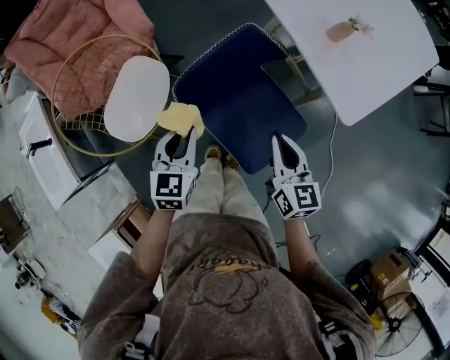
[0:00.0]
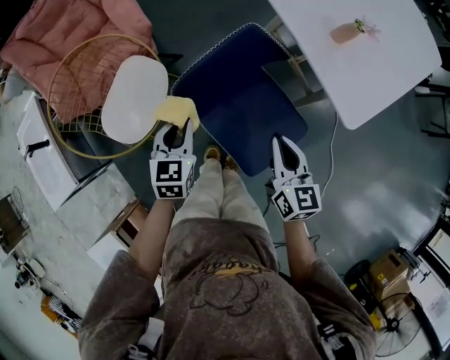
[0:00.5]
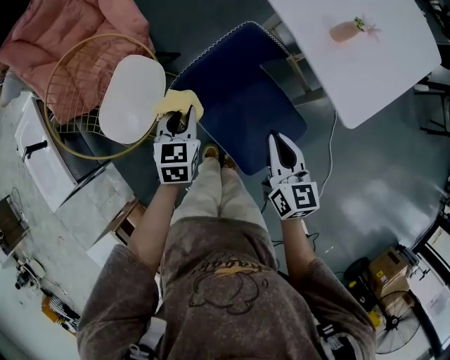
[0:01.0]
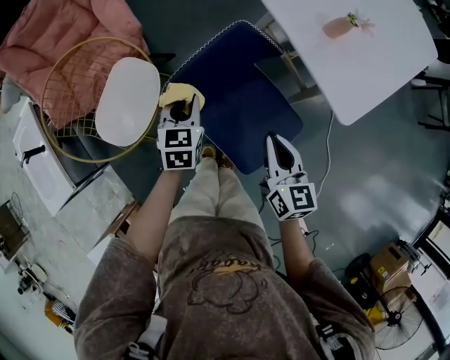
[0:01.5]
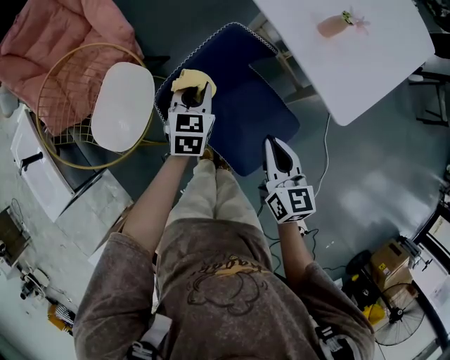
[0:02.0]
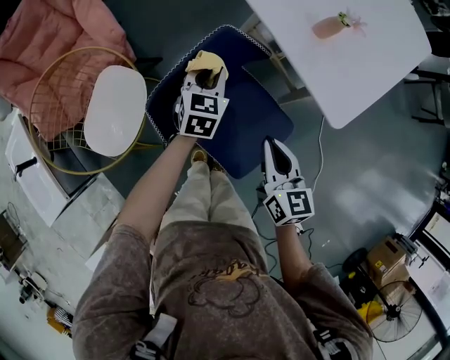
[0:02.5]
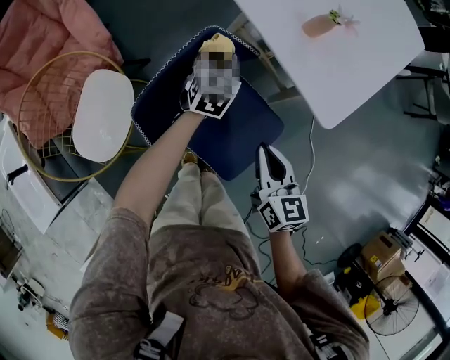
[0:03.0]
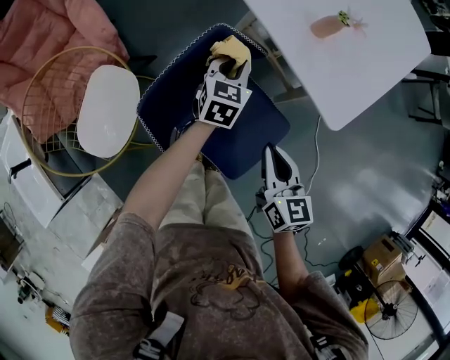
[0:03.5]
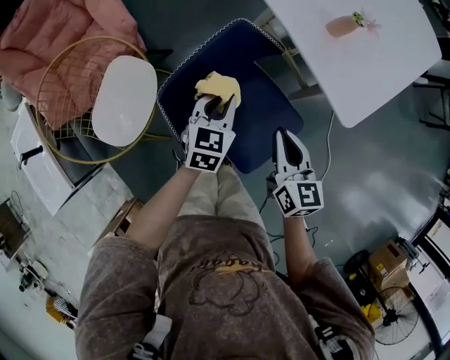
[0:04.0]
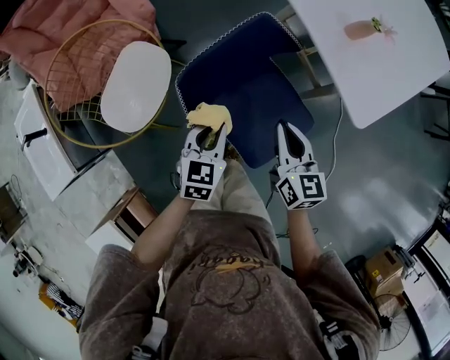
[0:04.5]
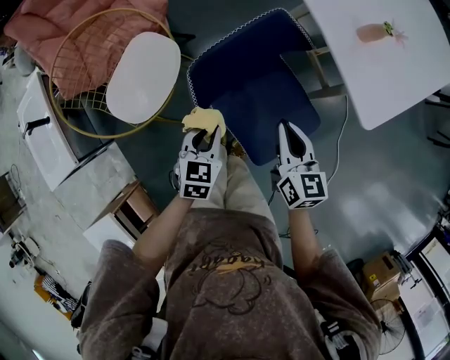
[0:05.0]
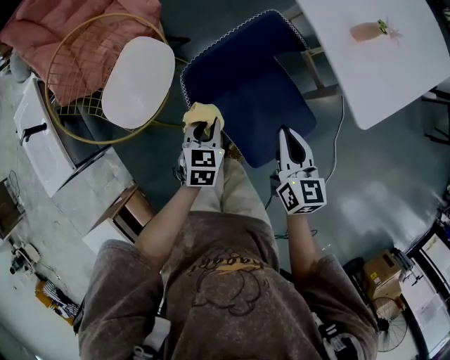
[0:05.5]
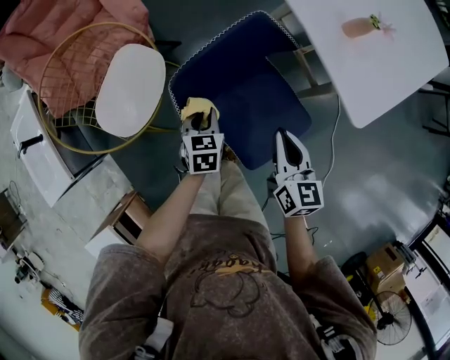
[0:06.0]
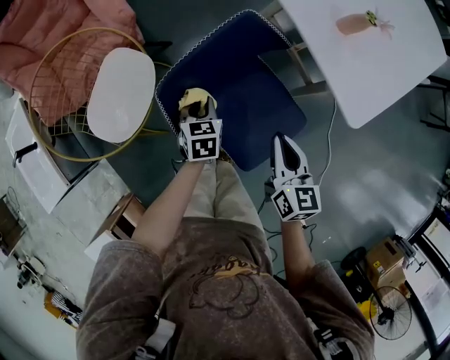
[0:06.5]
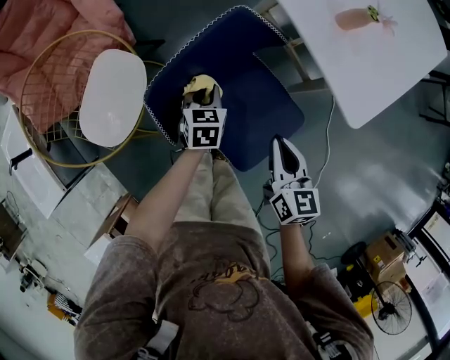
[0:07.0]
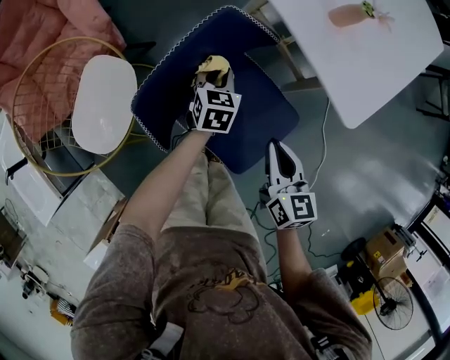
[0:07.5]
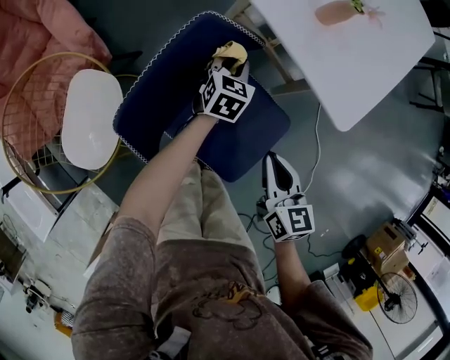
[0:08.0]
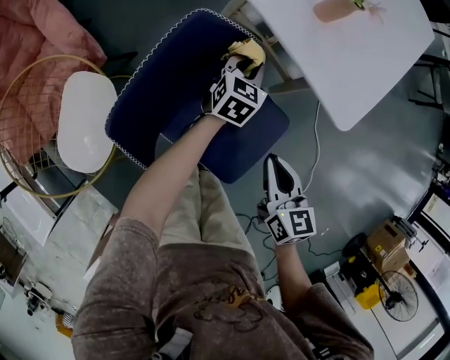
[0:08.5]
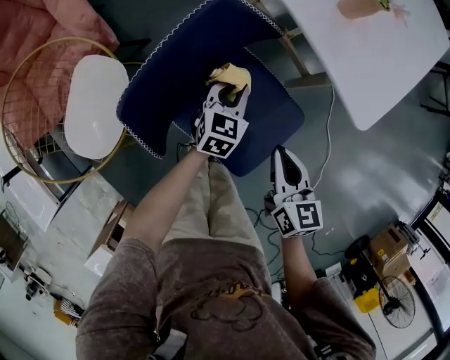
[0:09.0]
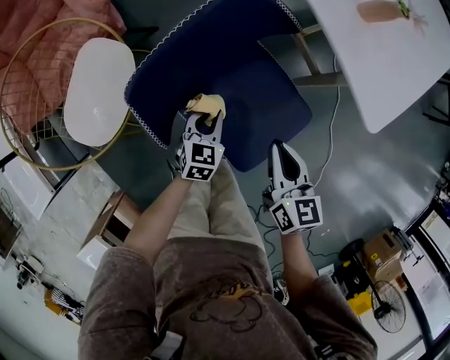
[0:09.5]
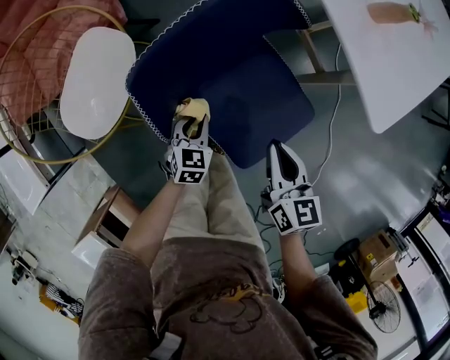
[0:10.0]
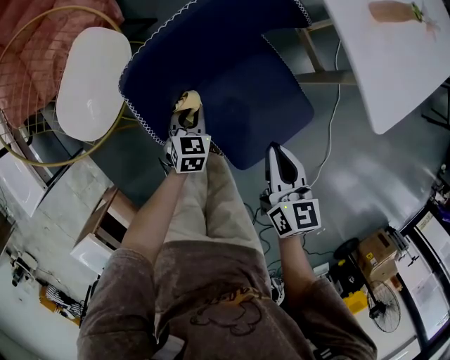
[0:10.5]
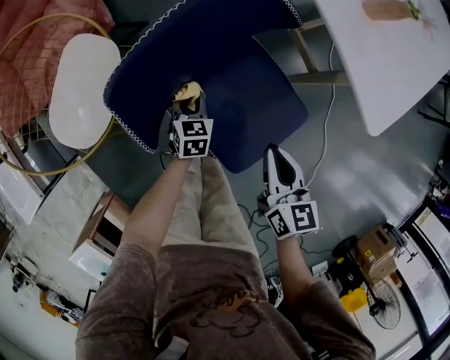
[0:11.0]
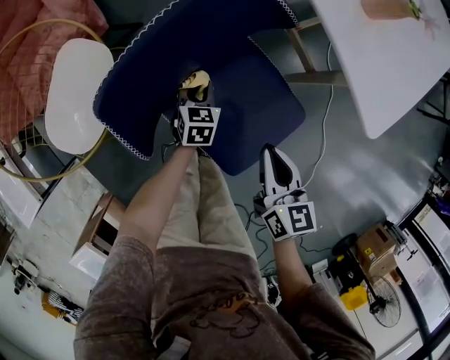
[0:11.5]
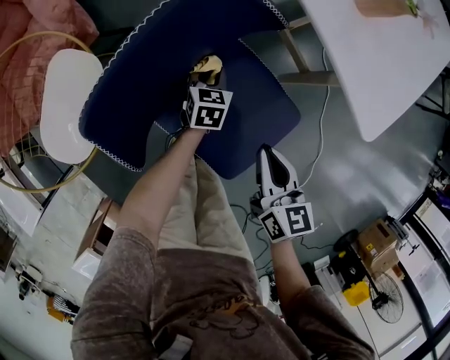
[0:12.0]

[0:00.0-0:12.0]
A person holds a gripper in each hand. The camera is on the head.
0:00.0 to 0:02.0: The left gripper travels forward, to the right and downward by roughly 15 cm.
0:02.0 to 0:04.0: The left gripper moves to the right, roughly 5 cm, and reaches about 10 cm forward, then returns.
0:04.0 to 0:06.0: The left gripper is displaced to the left, downward and backward by roughly 15 cm, and turns by approximately 30 degrees.
0:06.0 to 0:08.0: The left gripper goes about 30 cm to the right and forward, and changes its angle by approximately 30 degrees; the right gripper goes roughly 5 cm to the right.
0:08.0 to 0:10.0: The right gripper heads to the left, covering approximately 5 cm, while the left gripper goes about 30 cm backward, to the left and downward.
0:10.0 to 0:12.0: The left gripper heads forward and to the right, covering roughly 20 cm. Meanwhile the right gripper ends up roughly 5 cm from where it was.

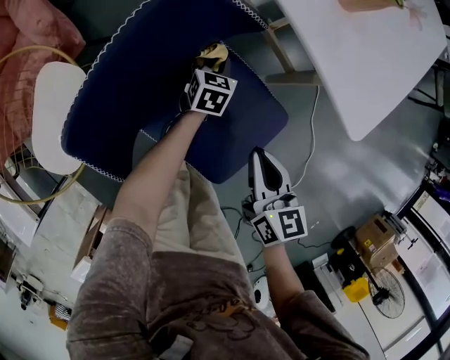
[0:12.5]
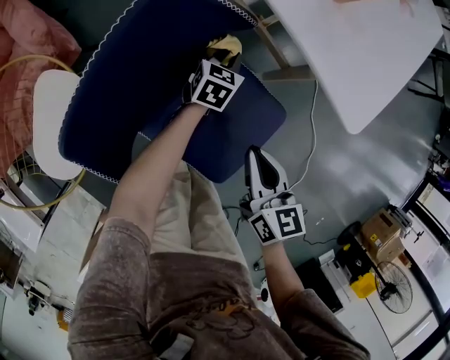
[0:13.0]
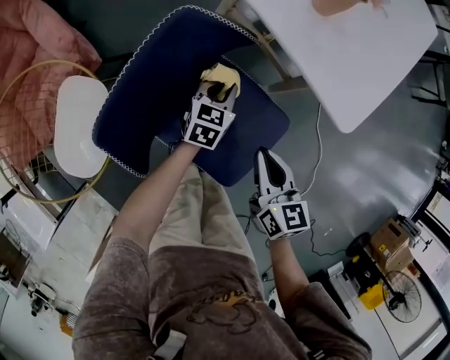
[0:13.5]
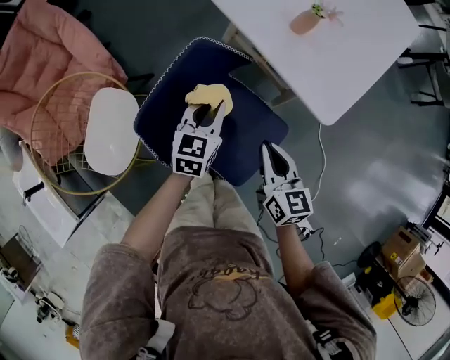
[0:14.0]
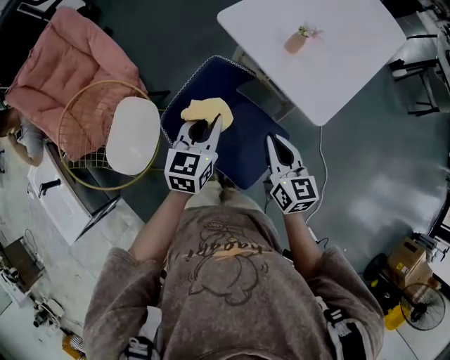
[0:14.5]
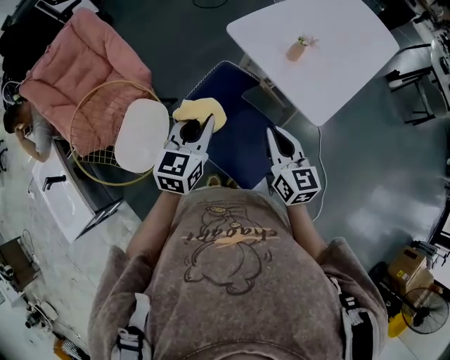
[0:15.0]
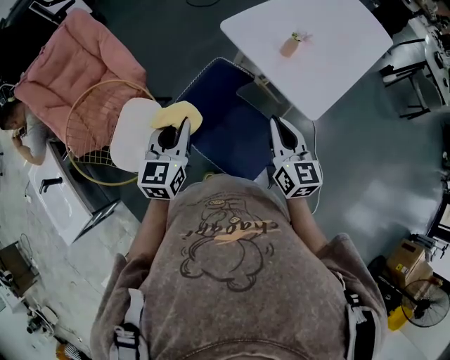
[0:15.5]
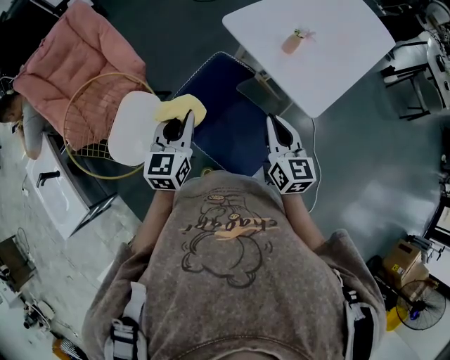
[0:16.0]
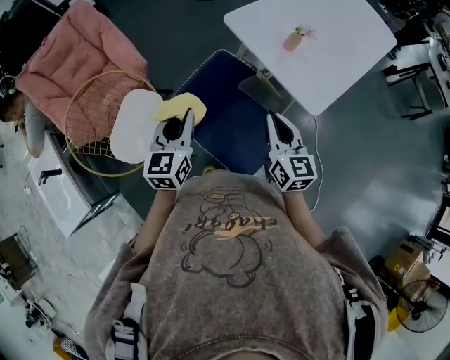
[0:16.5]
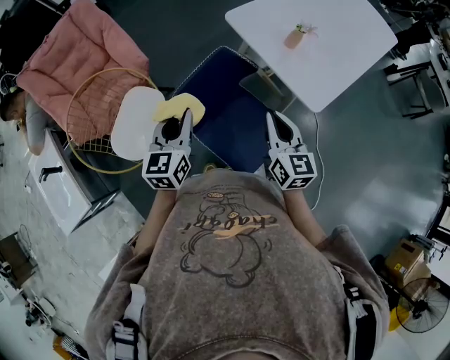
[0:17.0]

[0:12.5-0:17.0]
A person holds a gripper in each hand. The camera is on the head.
0:12.5 to 0:14.5: The right gripper goes roughly 20 cm upward; the left gripper travels upward by about 40 cm, and rotates approximately 20 degrees.
0:14.5 to 0:17.0: The left gripper shifts some 15 cm to the left and backward; the right gripper travels upward by about 5 cm.

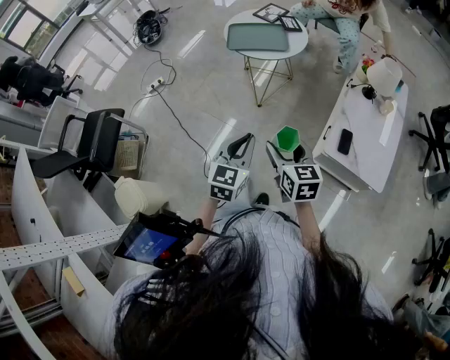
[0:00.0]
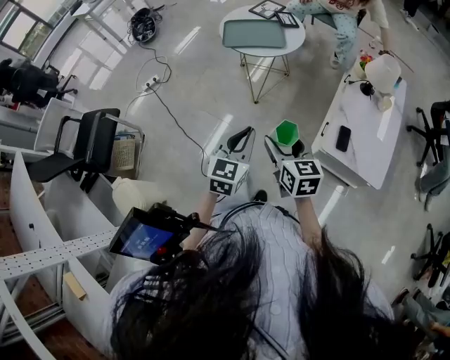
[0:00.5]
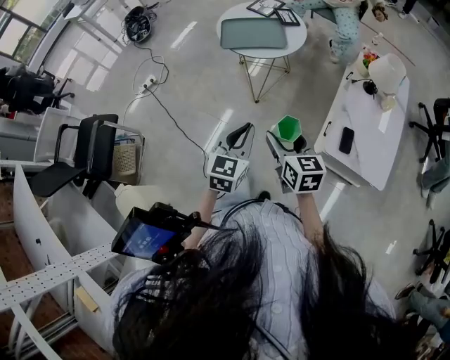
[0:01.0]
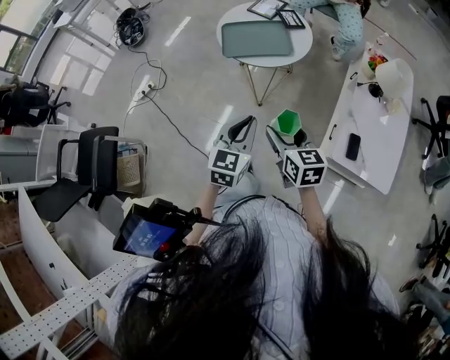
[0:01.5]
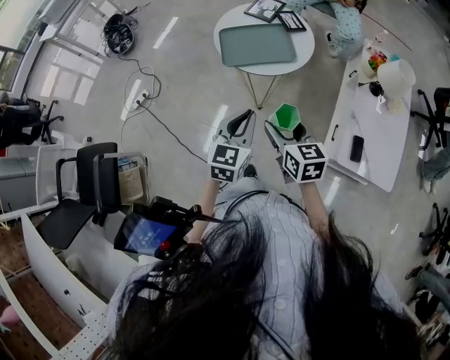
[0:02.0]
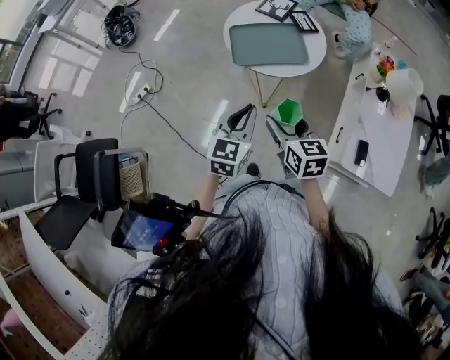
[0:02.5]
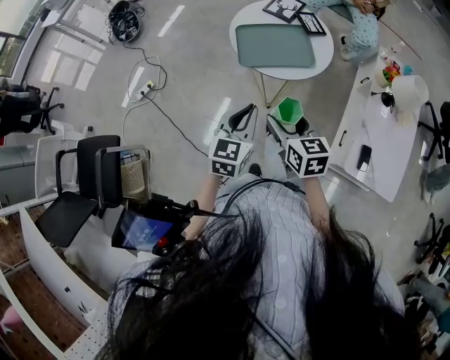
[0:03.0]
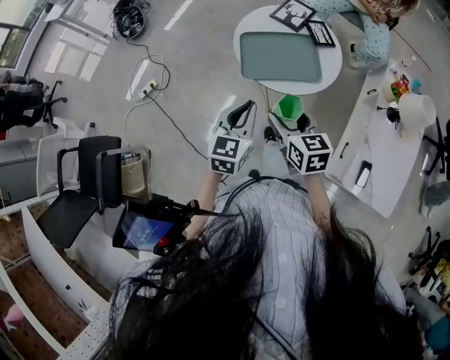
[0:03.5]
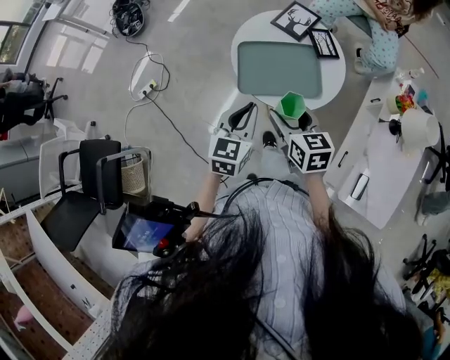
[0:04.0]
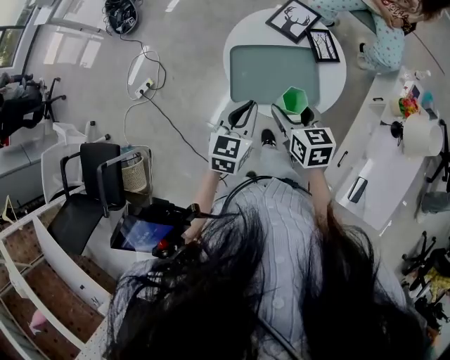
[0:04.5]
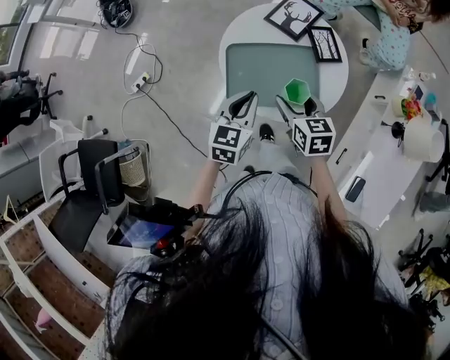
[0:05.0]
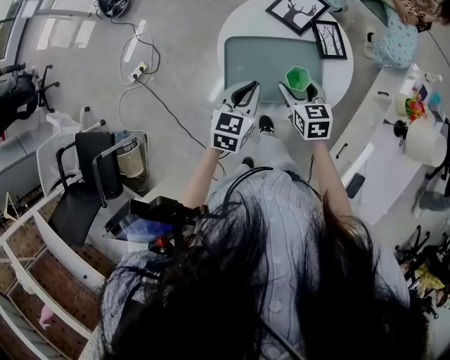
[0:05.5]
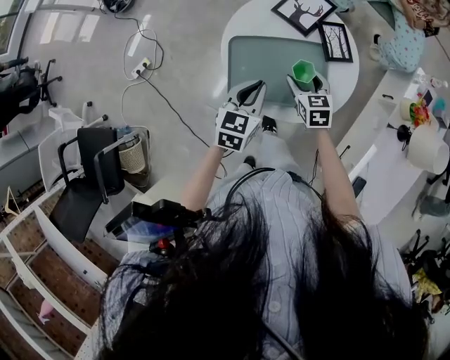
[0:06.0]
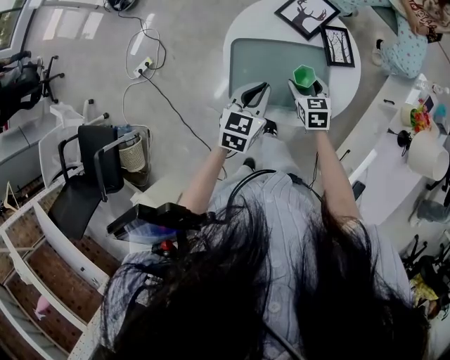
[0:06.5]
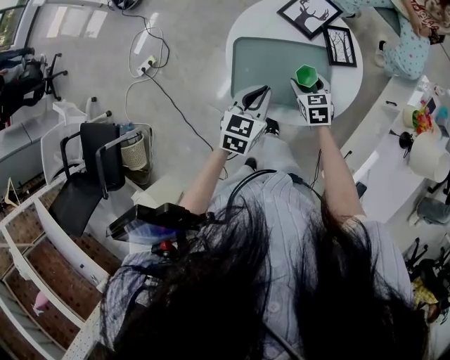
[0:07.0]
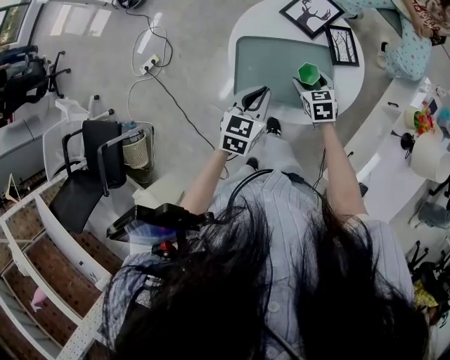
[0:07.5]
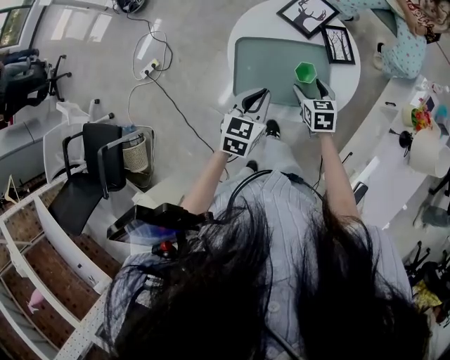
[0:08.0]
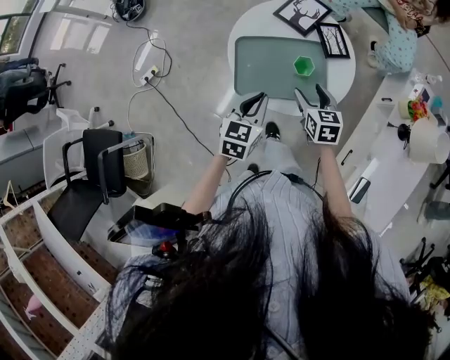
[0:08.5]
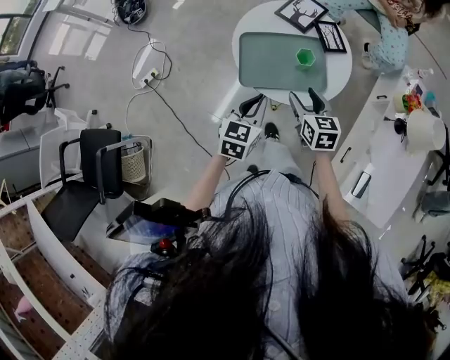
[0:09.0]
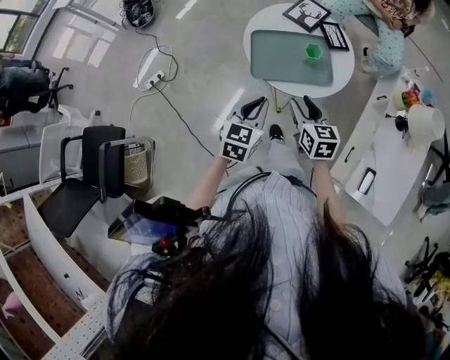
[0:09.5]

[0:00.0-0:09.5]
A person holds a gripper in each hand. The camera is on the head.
0:00.0 to 0:02.0: Both grippers move forward, some 25 cm.
0:02.0 to 0:04.0: Both grippers move forward, about 20 cm.
0:04.0 to 0:05.5: The right gripper moves forward, downward and to the right, approximately 20 cm, while the left gripper moves forward and downward, roughly 15 cm.
0:05.5 to 0:07.5: The right gripper is displaced downward by roughly 10 cm.
0:07.5 to 0:09.5: The right gripper heads backward and upward, covering some 25 cm, rotates roughly 20 degrees, and closes up, while the left gripper moves backward, roughly 15 cm.

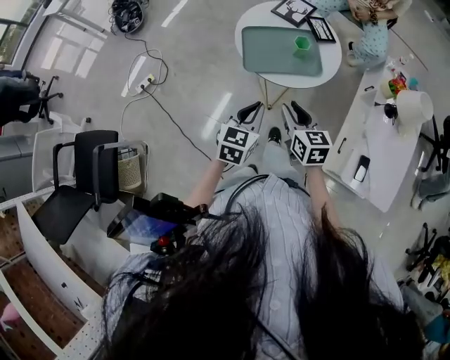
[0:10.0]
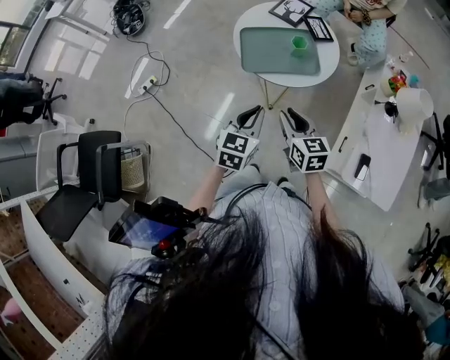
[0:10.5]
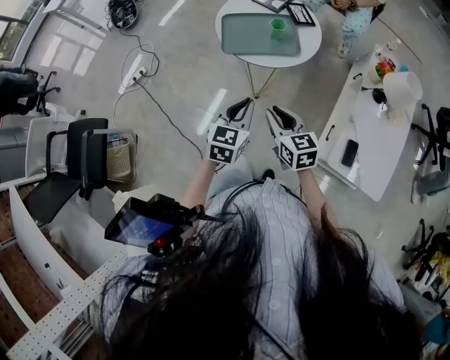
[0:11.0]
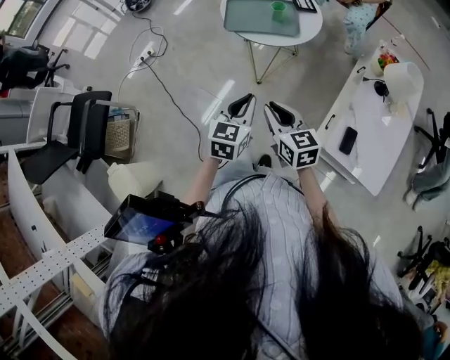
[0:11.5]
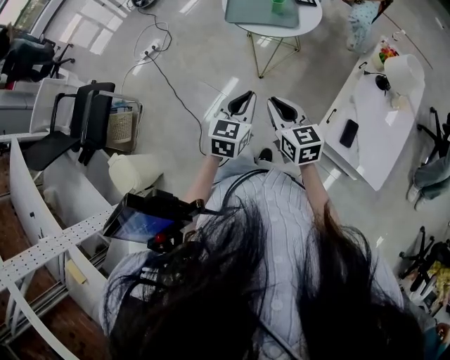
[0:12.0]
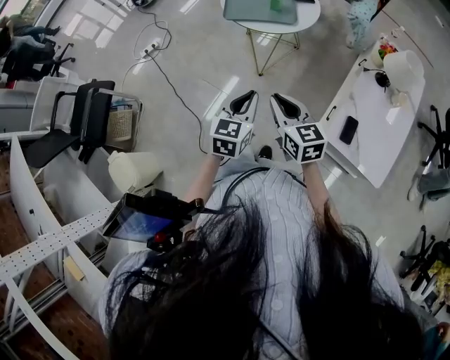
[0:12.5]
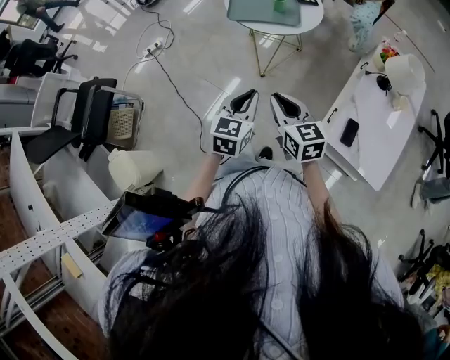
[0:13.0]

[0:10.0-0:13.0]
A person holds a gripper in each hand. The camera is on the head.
0:10.0 to 0:11.5: The left gripper travels backward and to the right by some 20 cm. The right gripper goes some 20 cm backward.
0:11.5 to 0:13.0: The left gripper heads backward, covering approximately 5 cm, while the right gripper shifts by some 5 cm.
